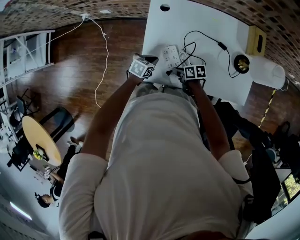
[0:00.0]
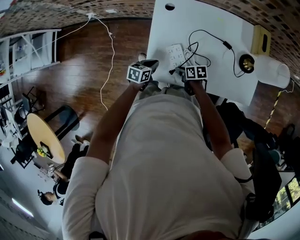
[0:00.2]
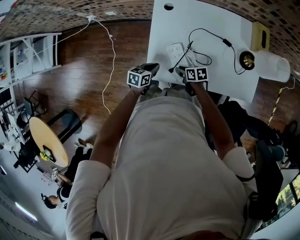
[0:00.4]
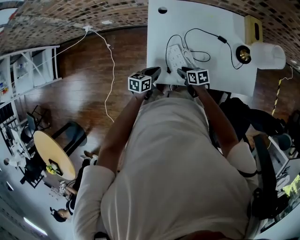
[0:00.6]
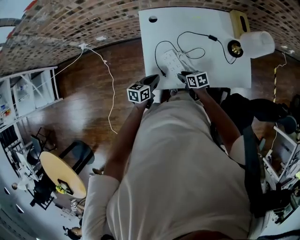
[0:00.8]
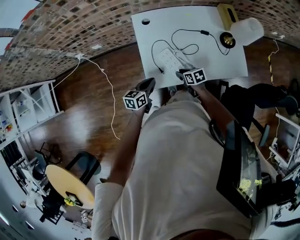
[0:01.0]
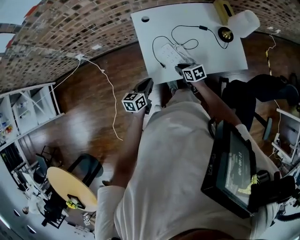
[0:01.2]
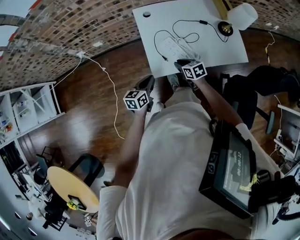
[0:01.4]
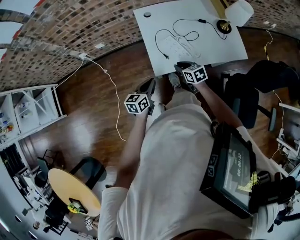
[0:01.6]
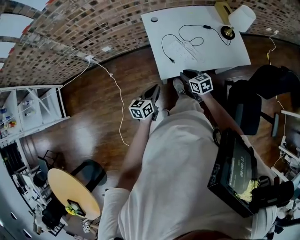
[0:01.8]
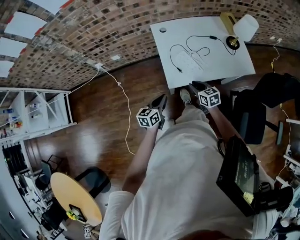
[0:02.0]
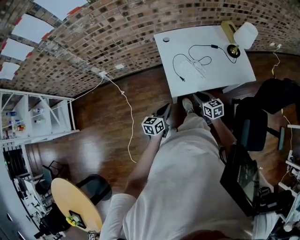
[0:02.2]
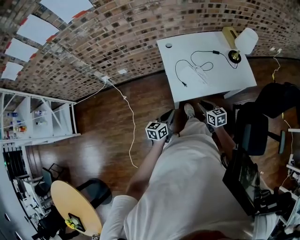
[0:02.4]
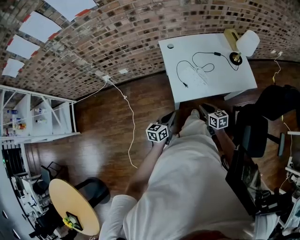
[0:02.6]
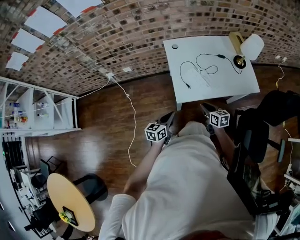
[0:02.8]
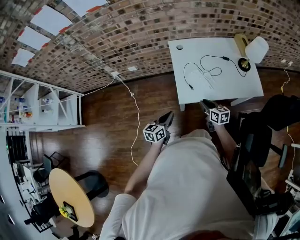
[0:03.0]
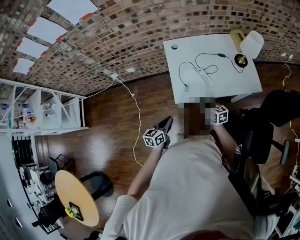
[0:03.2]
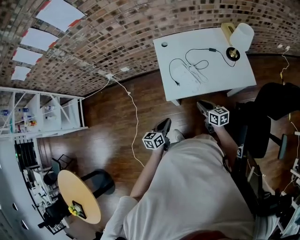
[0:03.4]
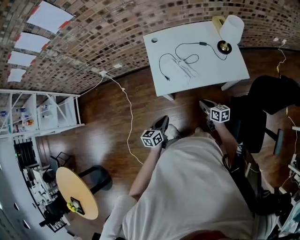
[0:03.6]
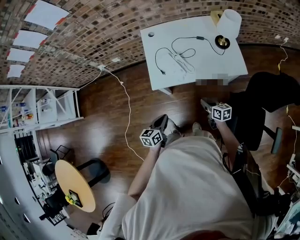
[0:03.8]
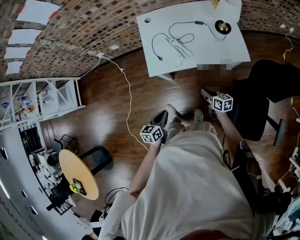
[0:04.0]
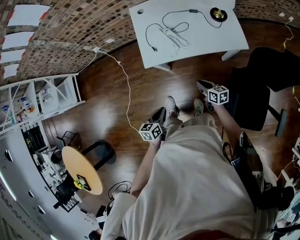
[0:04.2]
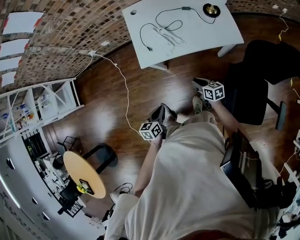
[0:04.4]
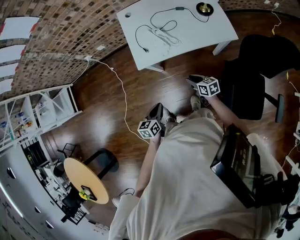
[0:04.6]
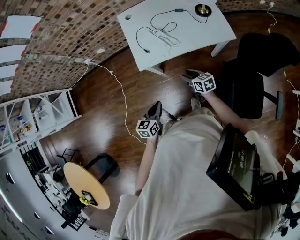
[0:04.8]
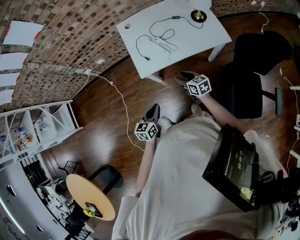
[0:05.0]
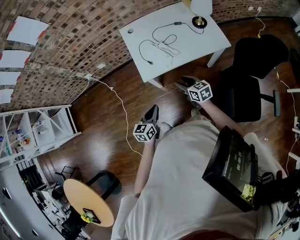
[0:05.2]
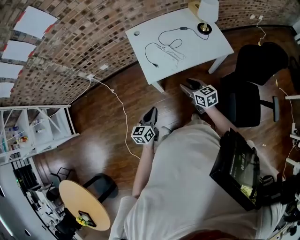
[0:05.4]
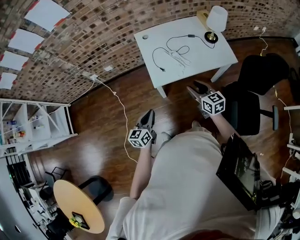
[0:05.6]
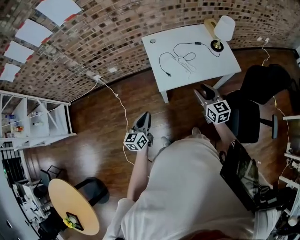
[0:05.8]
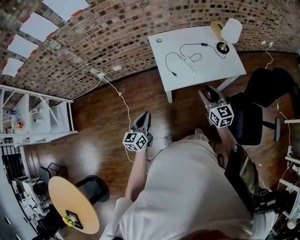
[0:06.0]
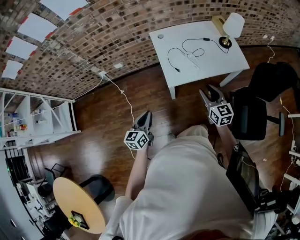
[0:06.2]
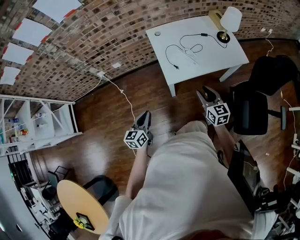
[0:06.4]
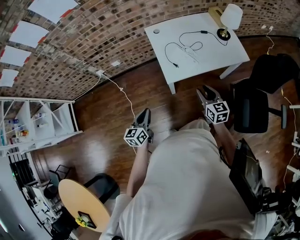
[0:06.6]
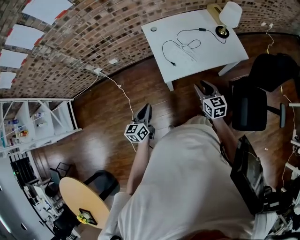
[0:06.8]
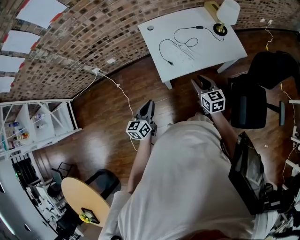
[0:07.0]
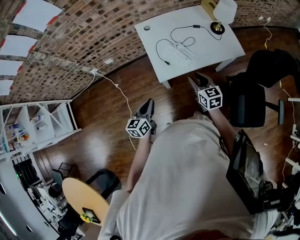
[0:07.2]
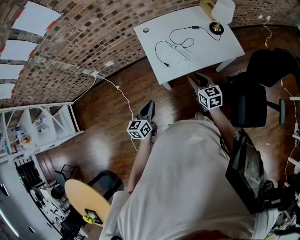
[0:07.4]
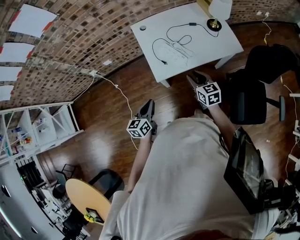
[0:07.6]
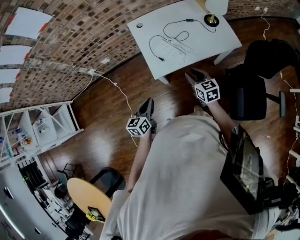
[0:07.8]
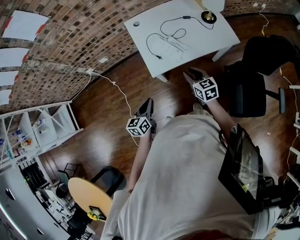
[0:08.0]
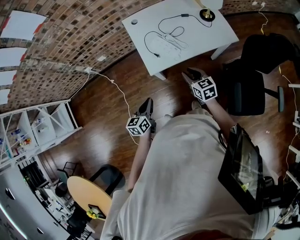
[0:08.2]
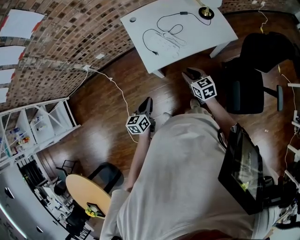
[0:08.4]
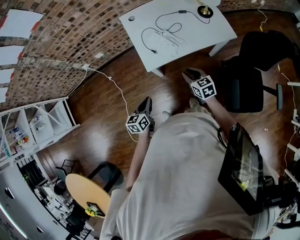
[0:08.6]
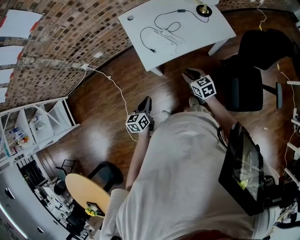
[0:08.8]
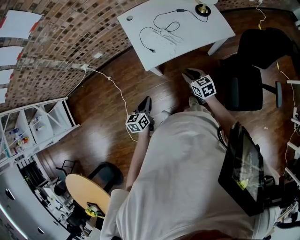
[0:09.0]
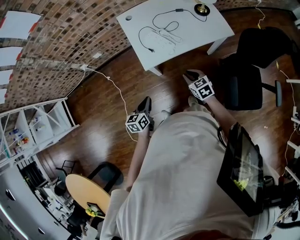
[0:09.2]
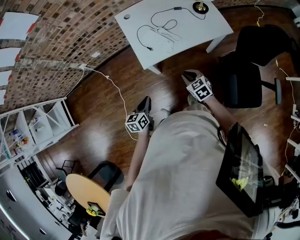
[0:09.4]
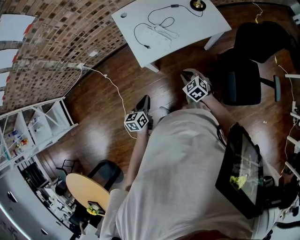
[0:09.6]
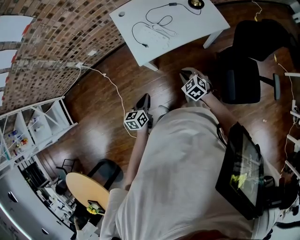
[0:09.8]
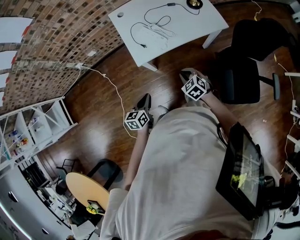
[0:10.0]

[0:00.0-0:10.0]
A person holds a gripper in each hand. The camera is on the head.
0:00.0 to 0:01.4: The left gripper changes place by about 25 cm, and changes its angle by approximately 30 degrees. The right gripper goes approximately 10 cm upward, and rotates some 40 degrees.
0:01.4 to 0:02.8: Both grippers move backward, approximately 10 cm.
0:02.8 to 0:04.2: The left gripper goes some 25 cm backward and to the right, and swivels roughly 20 degrees. The right gripper goes about 25 cm to the right and backward.
0:04.2 to 0:05.8: The right gripper goes roughly 30 cm upward and to the left, turns by some 40 degrees, and opens. Meanwhile the left gripper heads to the left, upward and forward, covering approximately 25 cm, and changes its angle by roughly 30 degrees.
0:05.8 to 0:07.2: The right gripper travels downward and forward by some 10 cm, while the left gripper goes approximately 5 cm forward, and moves roughly 5 cm to the left and comes back.
0:07.2 to 0:08.6: The left gripper moves downward and backward, some 10 cm. Meanwhile the right gripper goes roughly 10 cm downward.
0:08.6 to 0:10.0: The left gripper changes place by about 5 cm. The right gripper goes some 5 cm backward, and turns by about 30 degrees.

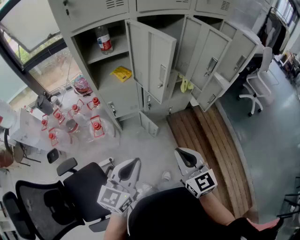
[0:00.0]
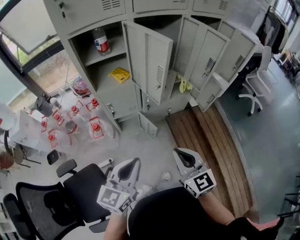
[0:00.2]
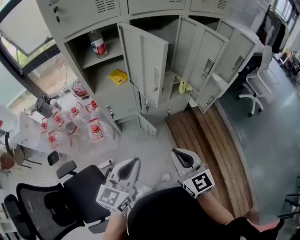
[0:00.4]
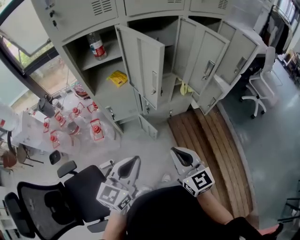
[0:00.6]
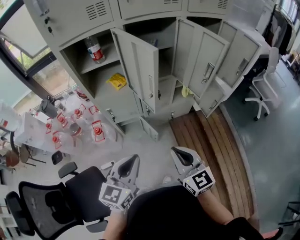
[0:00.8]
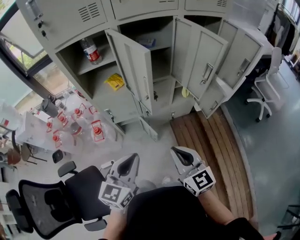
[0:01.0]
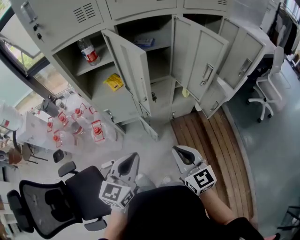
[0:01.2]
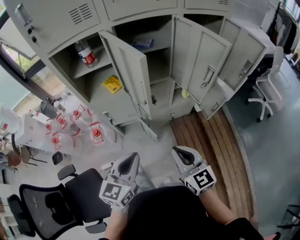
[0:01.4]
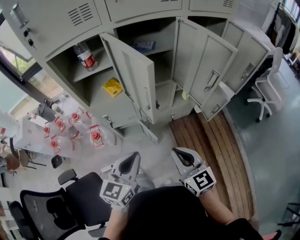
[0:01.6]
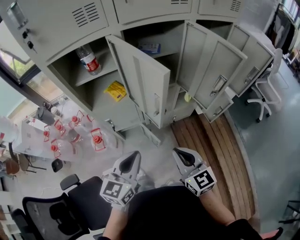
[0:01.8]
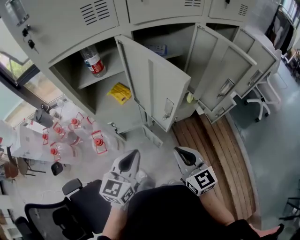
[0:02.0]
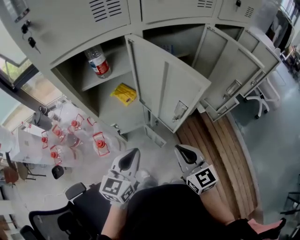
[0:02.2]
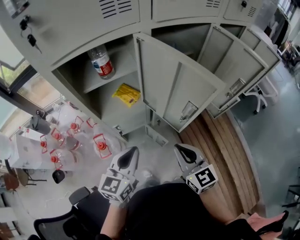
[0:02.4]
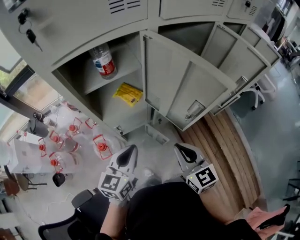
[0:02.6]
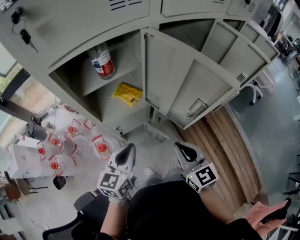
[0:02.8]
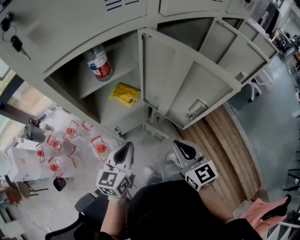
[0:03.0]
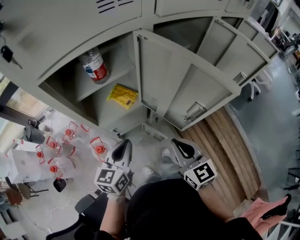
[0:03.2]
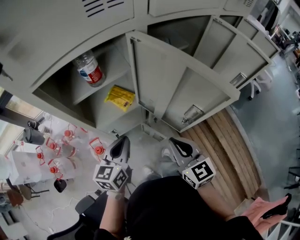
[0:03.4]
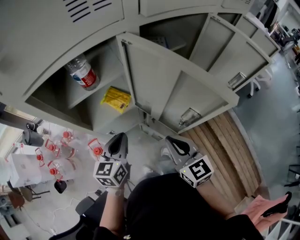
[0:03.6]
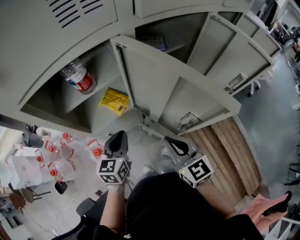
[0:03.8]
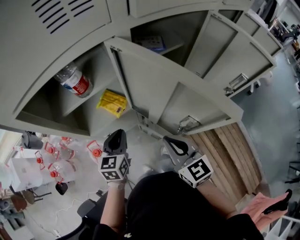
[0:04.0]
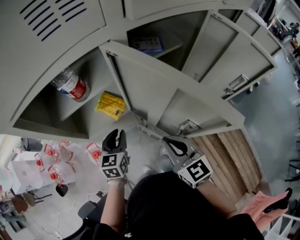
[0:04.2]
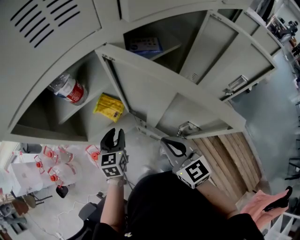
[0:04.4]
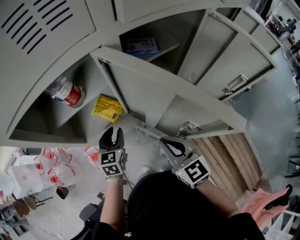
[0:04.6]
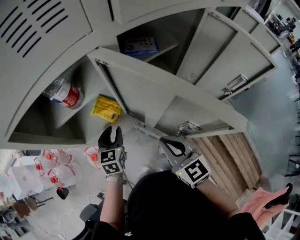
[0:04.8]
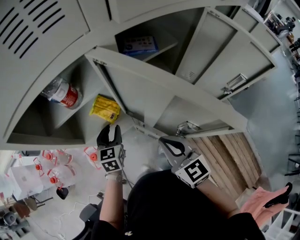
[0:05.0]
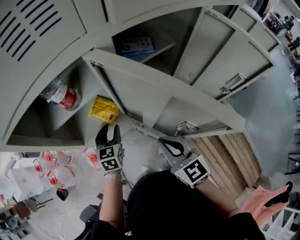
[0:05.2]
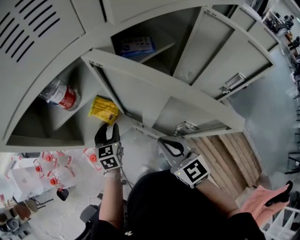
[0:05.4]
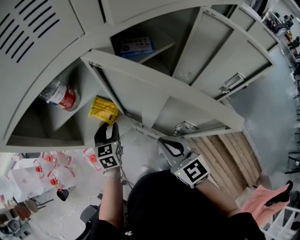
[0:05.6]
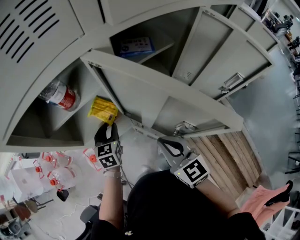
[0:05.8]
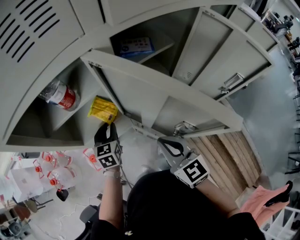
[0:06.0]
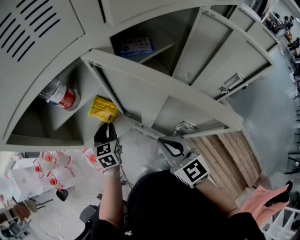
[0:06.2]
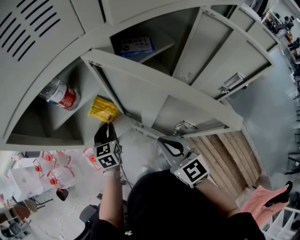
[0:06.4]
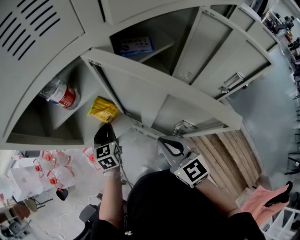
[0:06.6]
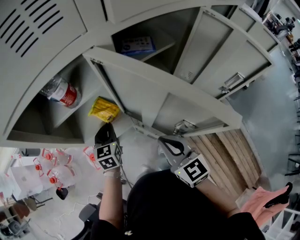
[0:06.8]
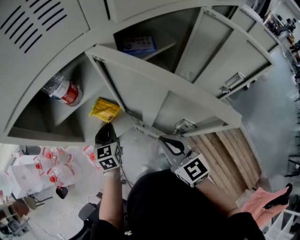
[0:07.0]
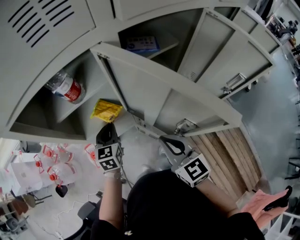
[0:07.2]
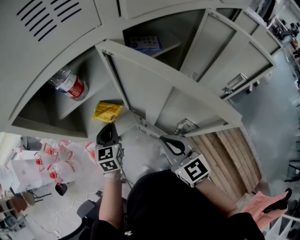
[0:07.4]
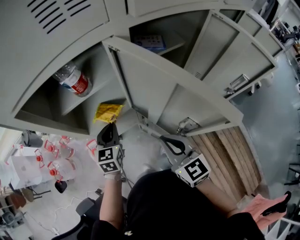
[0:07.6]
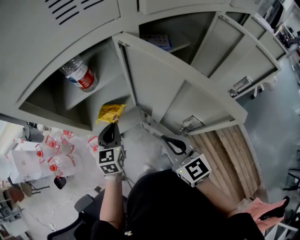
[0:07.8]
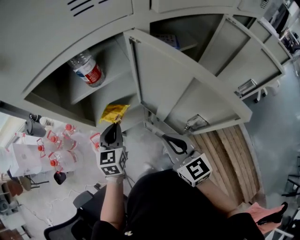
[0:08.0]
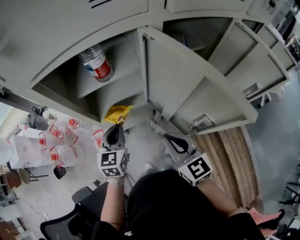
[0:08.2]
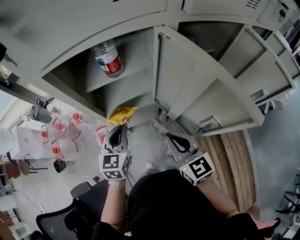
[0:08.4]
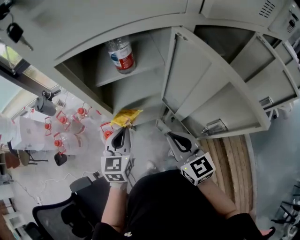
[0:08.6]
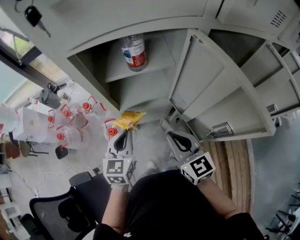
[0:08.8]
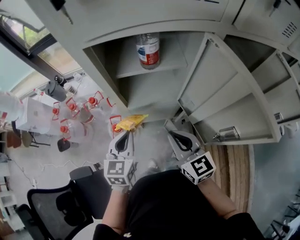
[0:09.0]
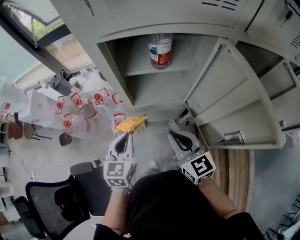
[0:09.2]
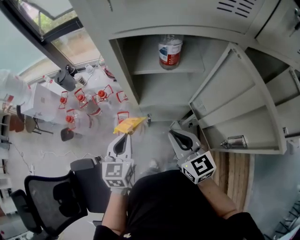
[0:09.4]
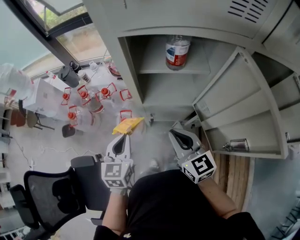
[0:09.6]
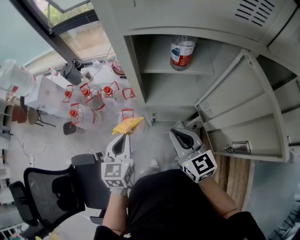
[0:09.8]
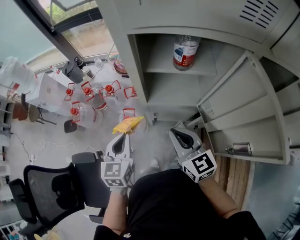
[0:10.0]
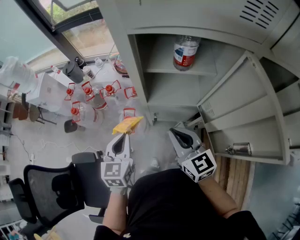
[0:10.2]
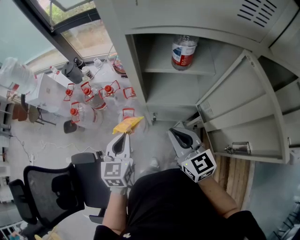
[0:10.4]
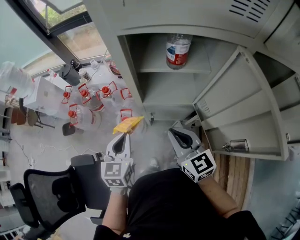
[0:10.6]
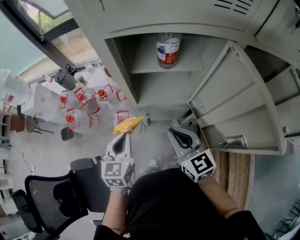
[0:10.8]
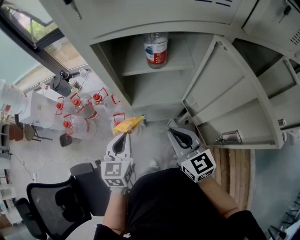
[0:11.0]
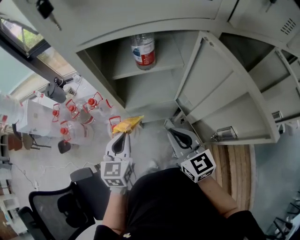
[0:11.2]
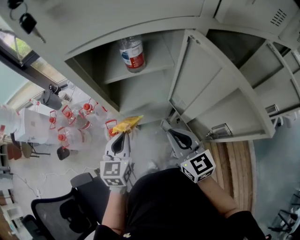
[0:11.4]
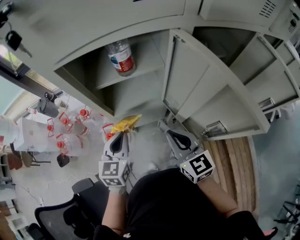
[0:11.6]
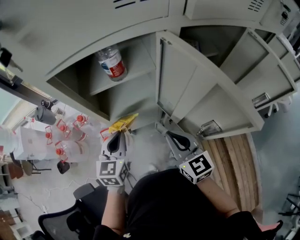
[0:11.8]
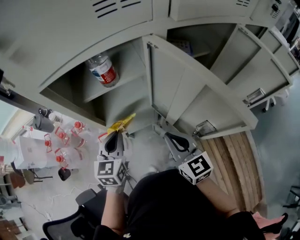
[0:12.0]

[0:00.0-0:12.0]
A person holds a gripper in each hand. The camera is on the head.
0:00.0 to 0:01.6: Both grippers travel together forward and to the right, some 15 cm.
0:01.6 to 0:03.0: The grippers both shift to the left and forward by about 25 cm.
0:03.0 to 0:04.4: The left gripper moves forward and downward, roughly 15 cm, and opens its fingers. The right gripper travels forward by roughly 10 cm.
0:04.4 to 0:06.0: The left gripper changes place by about 5 cm.
0:06.0 to 0:07.6: The left gripper ends up roughly 5 cm from where it was, and closes up.
0:07.6 to 0:09.0: The right gripper heads to the left, covering approximately 10 cm. The left gripper moves to the left, backward and upward, about 15 cm.
0:09.0 to 0:10.4: The right gripper goes some 5 cm to the left; the left gripper travels to the left by approximately 10 cm.
0:10.4 to 0:12.0: The right gripper shifts approximately 15 cm to the right, and rotates about 20 degrees. Meanwhile the left gripper goes roughly 15 cm to the right and forward, and rotates some 20 degrees.

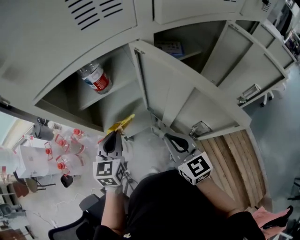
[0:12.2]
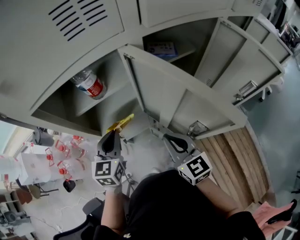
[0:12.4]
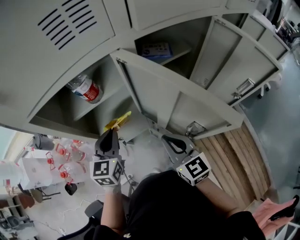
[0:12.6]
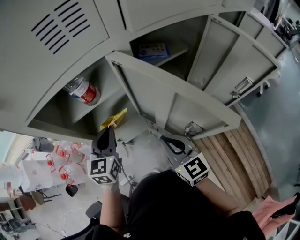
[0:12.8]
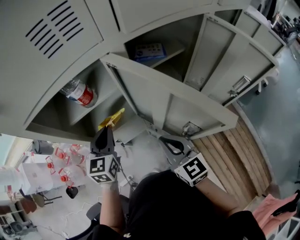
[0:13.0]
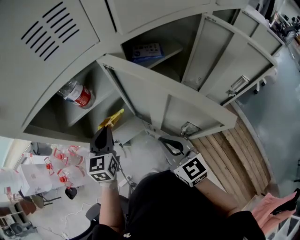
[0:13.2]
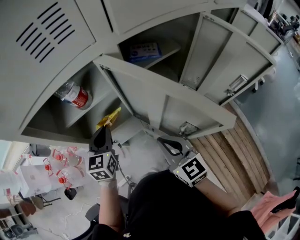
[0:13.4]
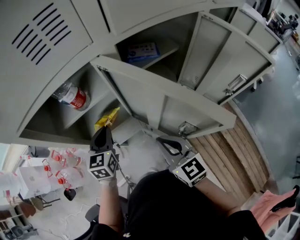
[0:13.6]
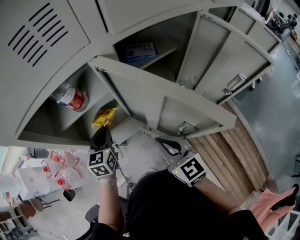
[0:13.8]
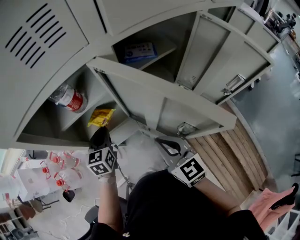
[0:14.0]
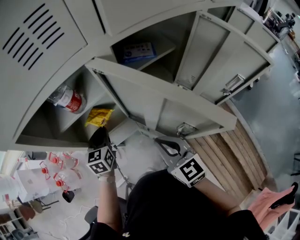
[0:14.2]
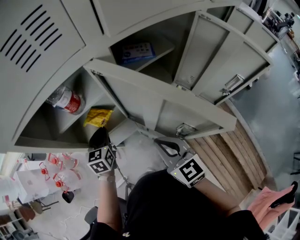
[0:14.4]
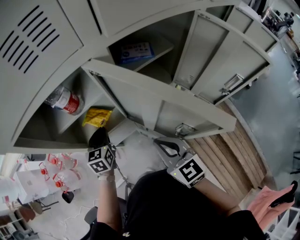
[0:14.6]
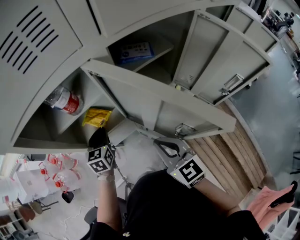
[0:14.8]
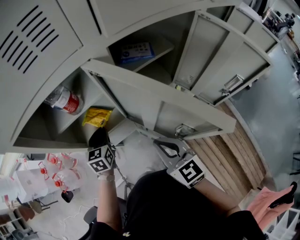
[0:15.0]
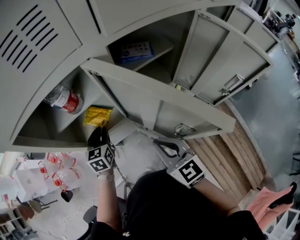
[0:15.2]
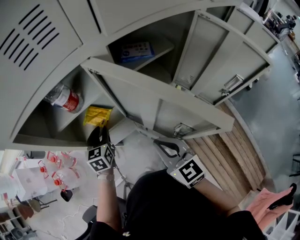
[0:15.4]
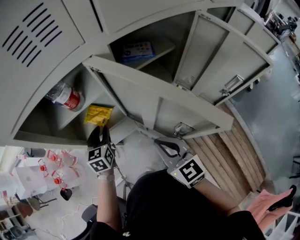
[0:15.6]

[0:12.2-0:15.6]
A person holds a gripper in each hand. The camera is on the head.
0:12.2 to 0:13.8: The left gripper moves forward, approximately 5 cm.
0:13.8 to 0:15.6: The left gripper opens up.
